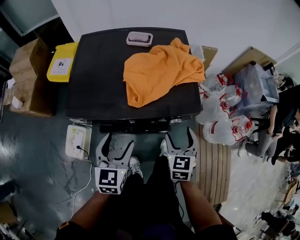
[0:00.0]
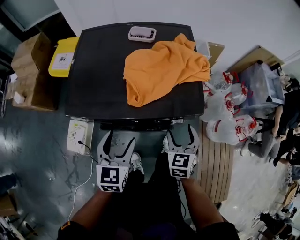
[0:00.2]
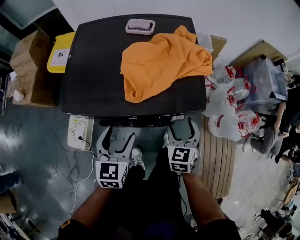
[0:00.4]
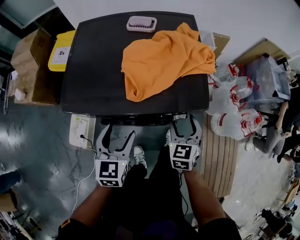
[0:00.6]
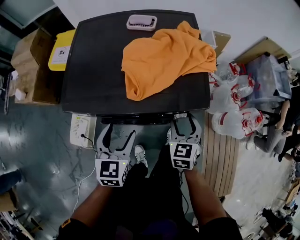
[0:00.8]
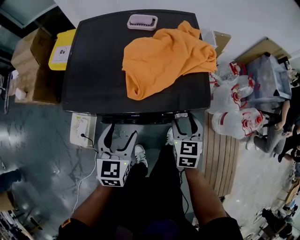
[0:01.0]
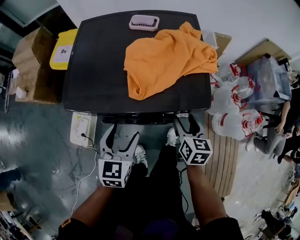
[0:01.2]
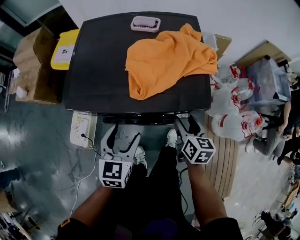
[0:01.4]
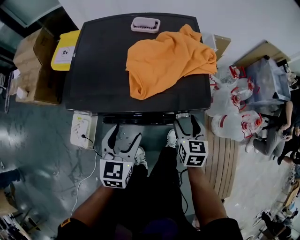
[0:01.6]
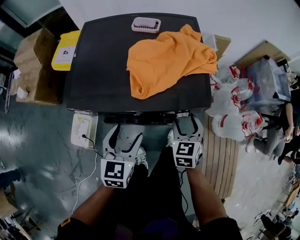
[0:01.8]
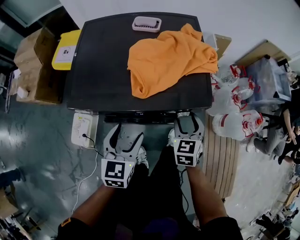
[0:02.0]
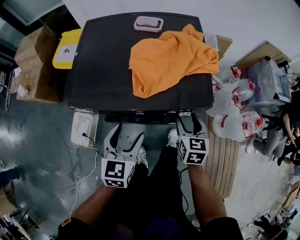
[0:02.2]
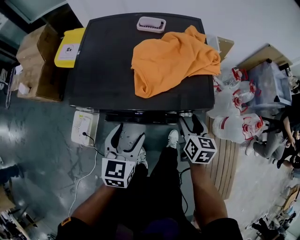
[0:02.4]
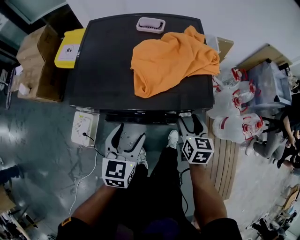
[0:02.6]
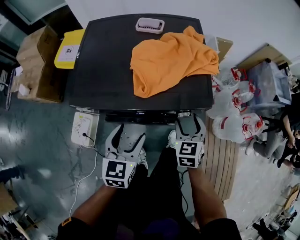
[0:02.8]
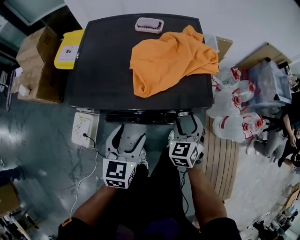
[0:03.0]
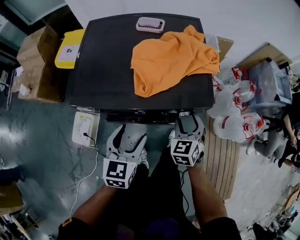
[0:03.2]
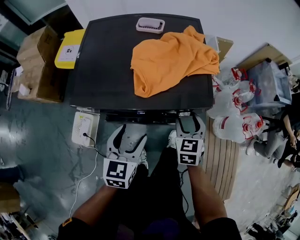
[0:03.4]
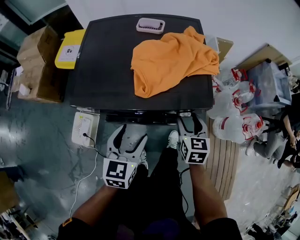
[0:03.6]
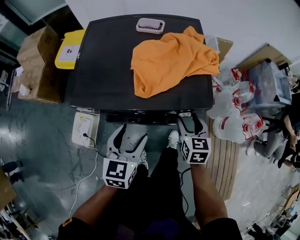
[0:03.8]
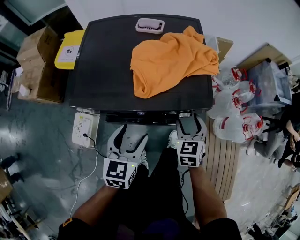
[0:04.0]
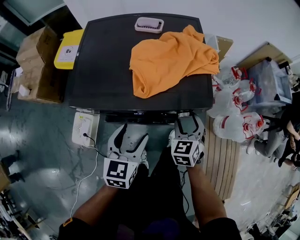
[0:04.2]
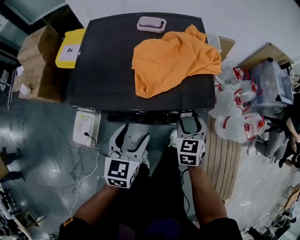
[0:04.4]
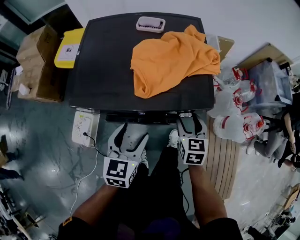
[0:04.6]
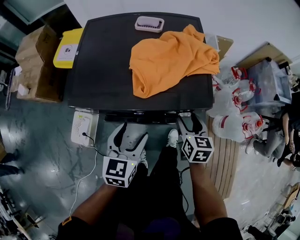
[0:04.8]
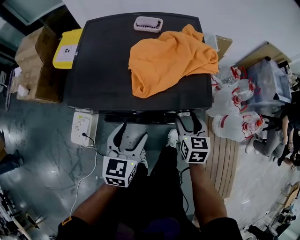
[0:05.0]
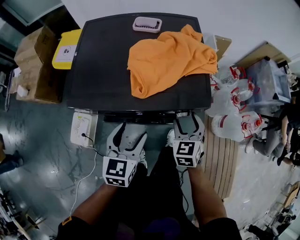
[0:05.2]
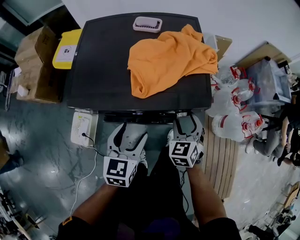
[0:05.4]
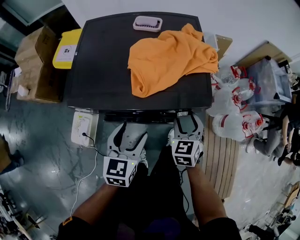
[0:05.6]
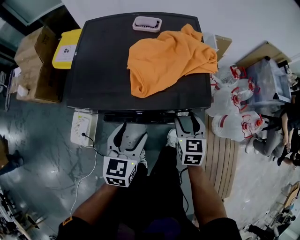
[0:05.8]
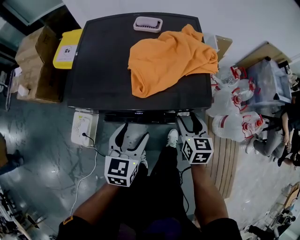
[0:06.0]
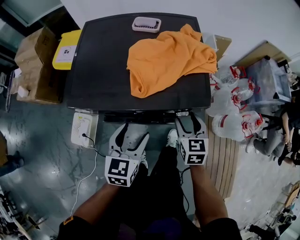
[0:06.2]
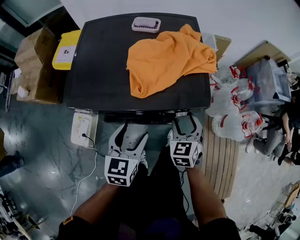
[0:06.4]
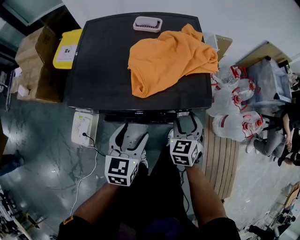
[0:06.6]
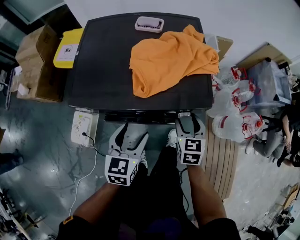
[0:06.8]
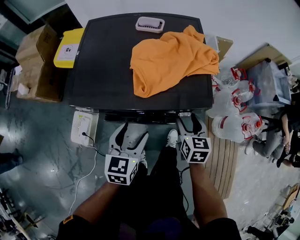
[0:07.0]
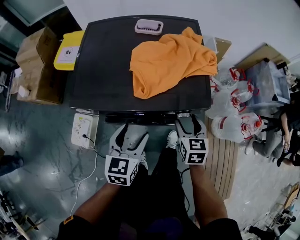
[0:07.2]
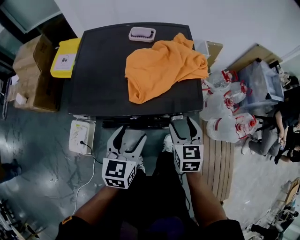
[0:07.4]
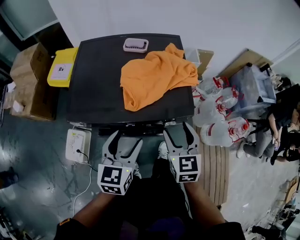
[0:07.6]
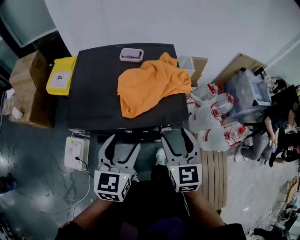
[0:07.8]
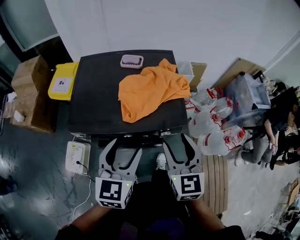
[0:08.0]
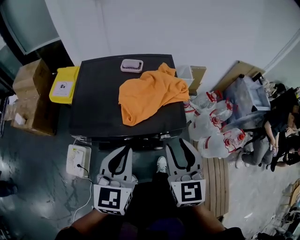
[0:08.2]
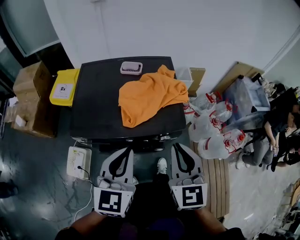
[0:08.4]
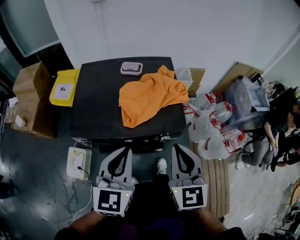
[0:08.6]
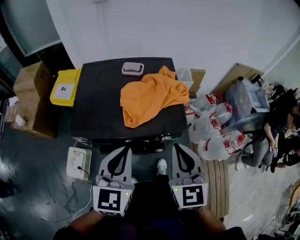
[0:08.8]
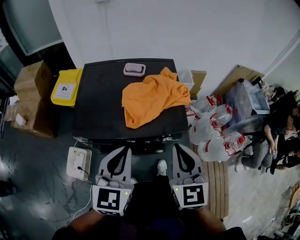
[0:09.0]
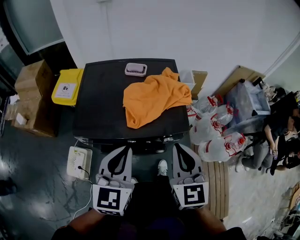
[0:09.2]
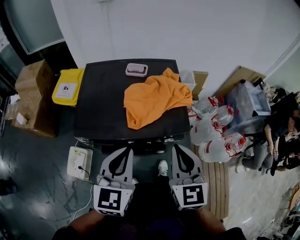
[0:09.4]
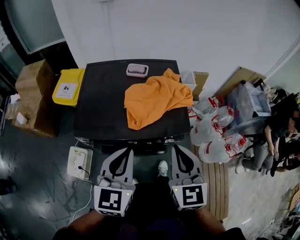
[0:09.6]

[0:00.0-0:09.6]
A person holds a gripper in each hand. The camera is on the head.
0:00.0 to 0:01.6: The right gripper ends up about 5 cm from where it was.
0:01.6 to 0:03.2: The right gripper swivels roughly 30 degrees.
0:03.2 to 0:04.8: The right gripper changes its angle by about 40 degrees.
0:04.8 to 0:06.4: The right gripper rotates roughly 30 degrees.
0:06.4 to 0:08.0: The grippers both shift upward by about 20 cm. The right gripper rotates roughly 20 degrees.
0:08.0 to 0:09.6: The right gripper closes up. Meanwhile the left gripper closes.

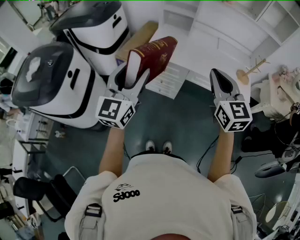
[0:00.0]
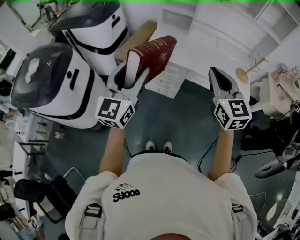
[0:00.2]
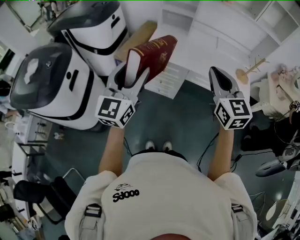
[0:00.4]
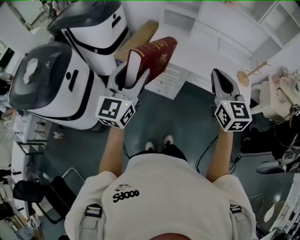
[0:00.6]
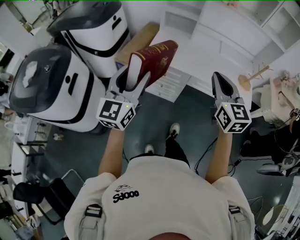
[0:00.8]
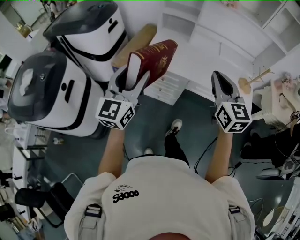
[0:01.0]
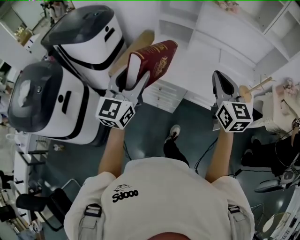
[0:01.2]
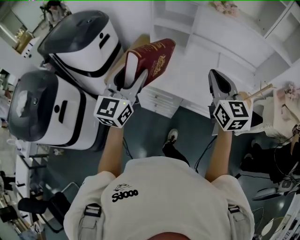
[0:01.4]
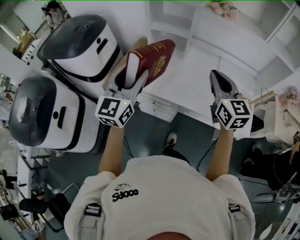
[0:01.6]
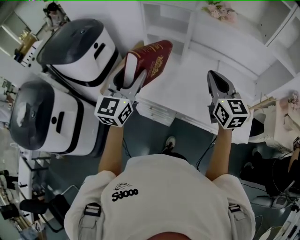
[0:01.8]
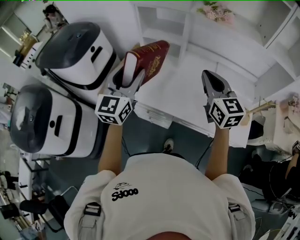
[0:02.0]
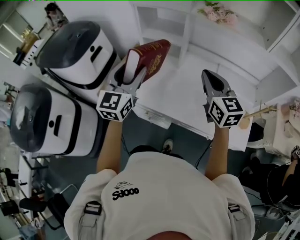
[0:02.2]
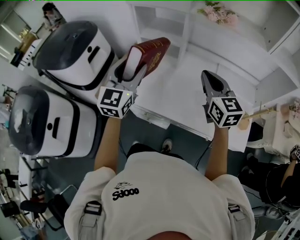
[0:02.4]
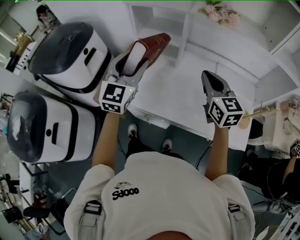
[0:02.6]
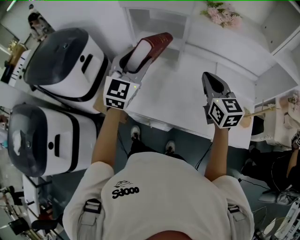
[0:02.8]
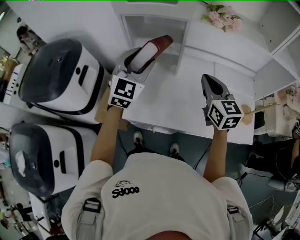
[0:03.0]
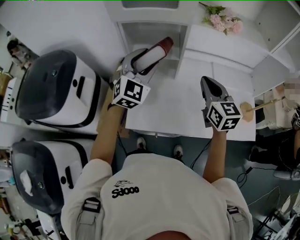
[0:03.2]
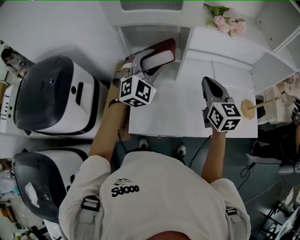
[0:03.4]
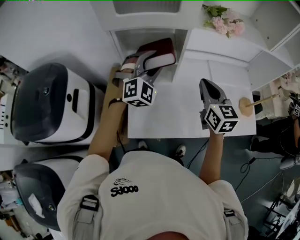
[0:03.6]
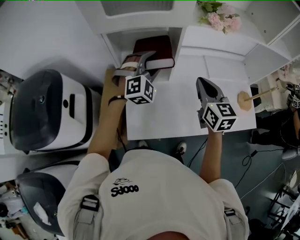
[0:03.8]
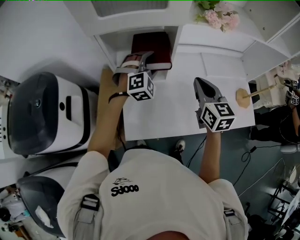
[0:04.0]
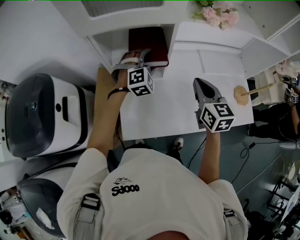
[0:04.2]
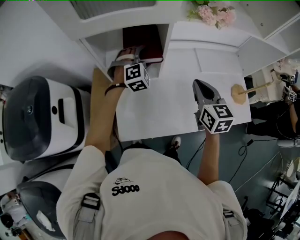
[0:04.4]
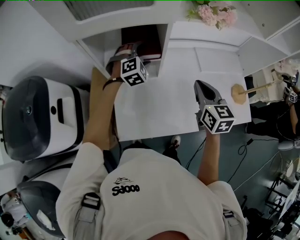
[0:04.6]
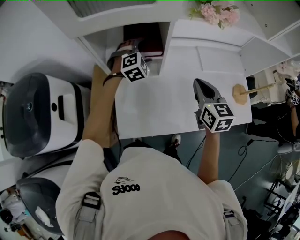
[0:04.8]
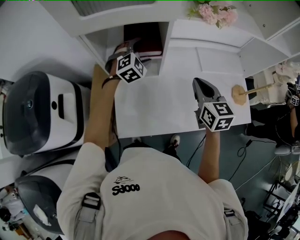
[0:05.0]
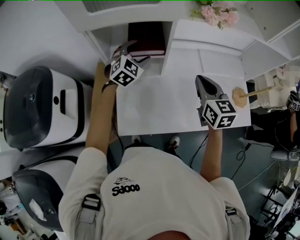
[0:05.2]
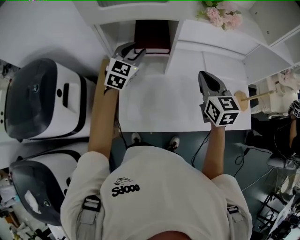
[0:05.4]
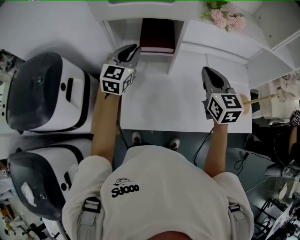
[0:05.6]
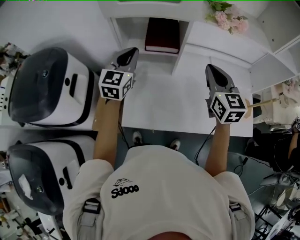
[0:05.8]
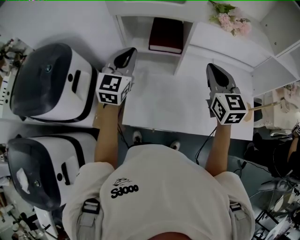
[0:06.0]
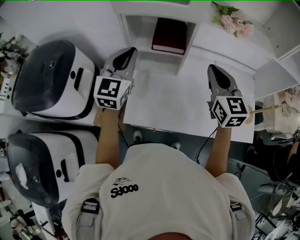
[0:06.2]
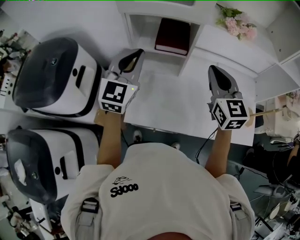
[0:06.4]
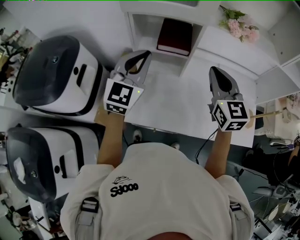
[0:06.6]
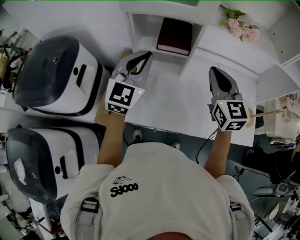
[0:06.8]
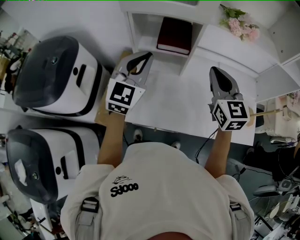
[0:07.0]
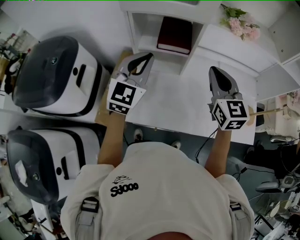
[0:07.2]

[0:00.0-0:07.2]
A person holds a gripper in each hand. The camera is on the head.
0:00.0 to 0:01.4: The two grippers go approximately 25 cm forward.
0:01.4 to 0:02.8: The two grippers go roughly 25 cm forward. The left gripper changes its angle by about 20 degrees.
0:02.8 to 0:04.4: The right gripper heads forward and downward, covering approximately 10 cm, and turns by roughly 30 degrees, while the left gripper is displaced forward and downward by roughly 30 cm, and angles its fingers downward, by some 30 degrees.
0:04.4 to 0:05.8: The left gripper goes approximately 20 cm upward, backward and to the left, rotates around the line of its fingers by approximately 60 degrees, counterclockwise from behind, and closes its fingers. Meanwhile the right gripper heads upward, covering about 10 cm.
0:05.8 to 0:07.2: The left gripper heads backward, covering about 5 cm.

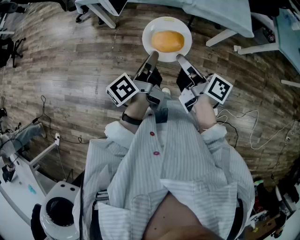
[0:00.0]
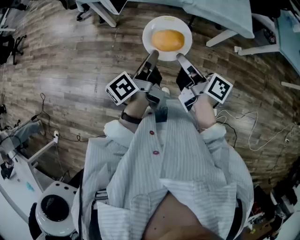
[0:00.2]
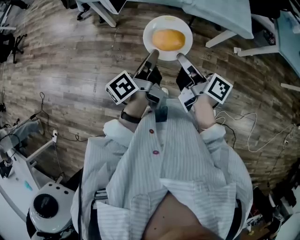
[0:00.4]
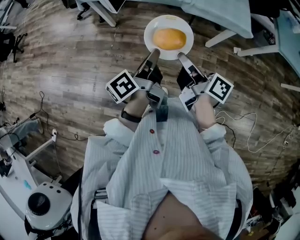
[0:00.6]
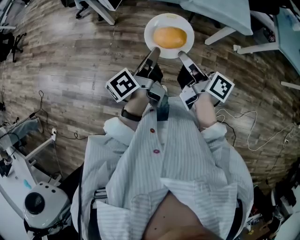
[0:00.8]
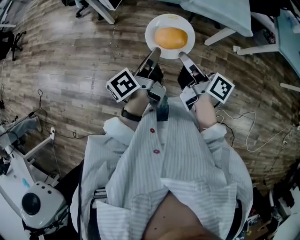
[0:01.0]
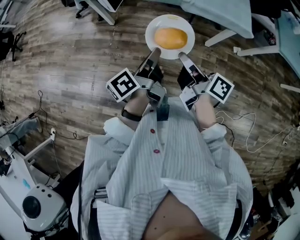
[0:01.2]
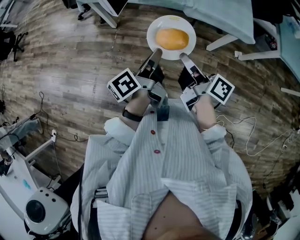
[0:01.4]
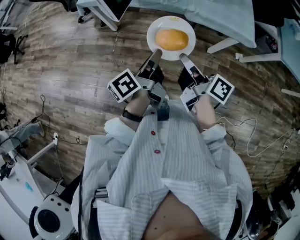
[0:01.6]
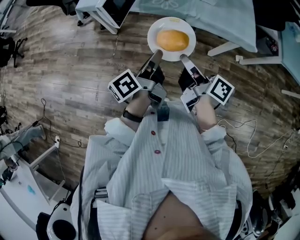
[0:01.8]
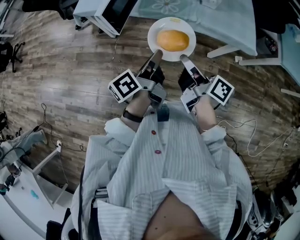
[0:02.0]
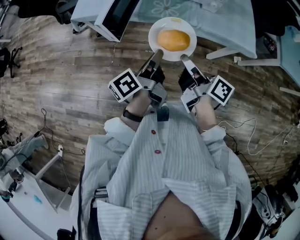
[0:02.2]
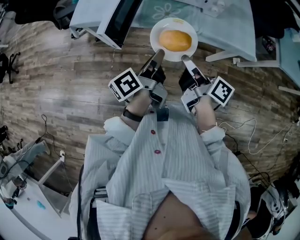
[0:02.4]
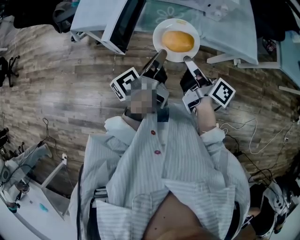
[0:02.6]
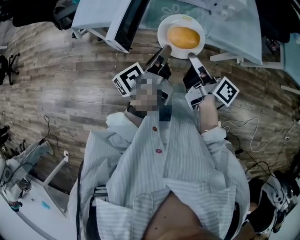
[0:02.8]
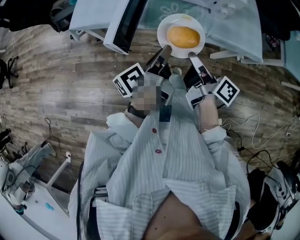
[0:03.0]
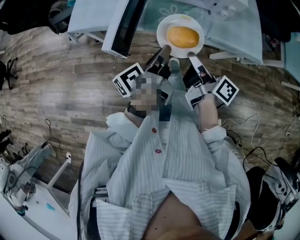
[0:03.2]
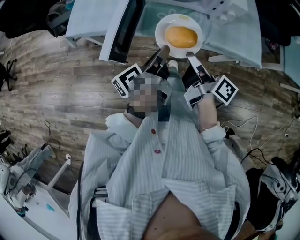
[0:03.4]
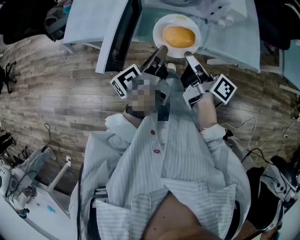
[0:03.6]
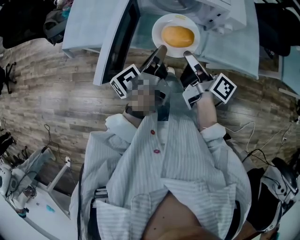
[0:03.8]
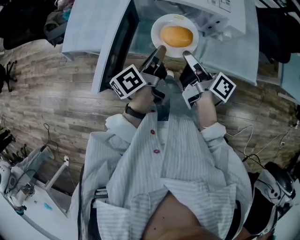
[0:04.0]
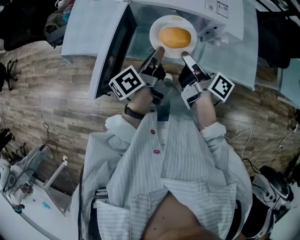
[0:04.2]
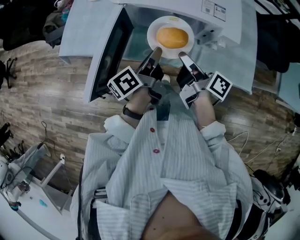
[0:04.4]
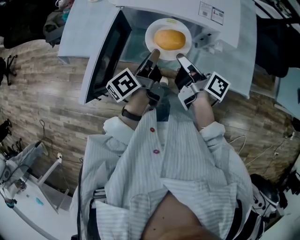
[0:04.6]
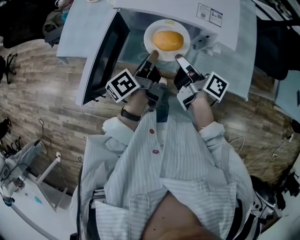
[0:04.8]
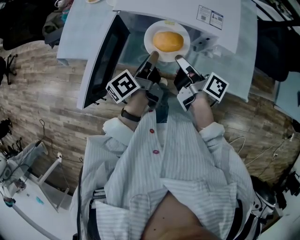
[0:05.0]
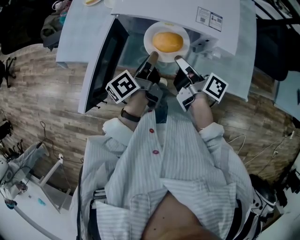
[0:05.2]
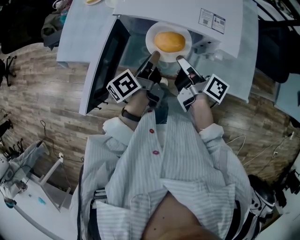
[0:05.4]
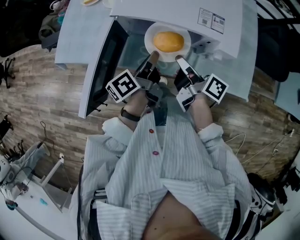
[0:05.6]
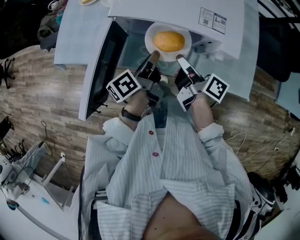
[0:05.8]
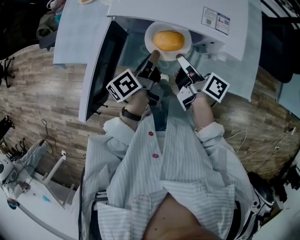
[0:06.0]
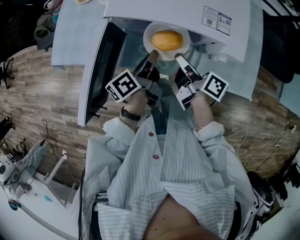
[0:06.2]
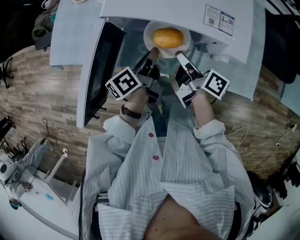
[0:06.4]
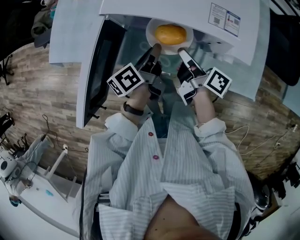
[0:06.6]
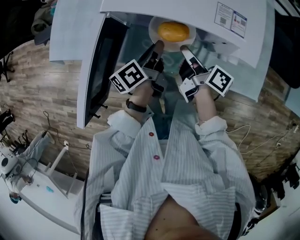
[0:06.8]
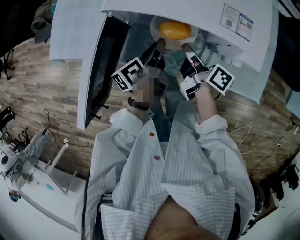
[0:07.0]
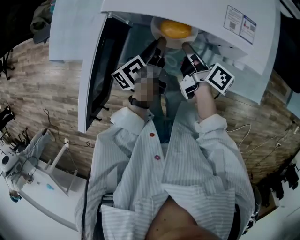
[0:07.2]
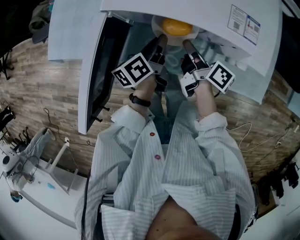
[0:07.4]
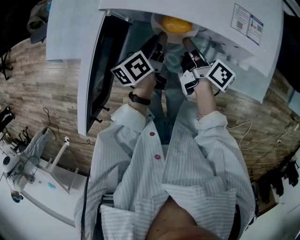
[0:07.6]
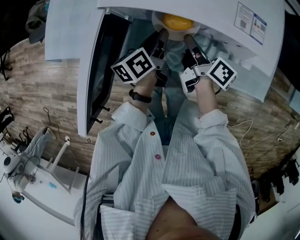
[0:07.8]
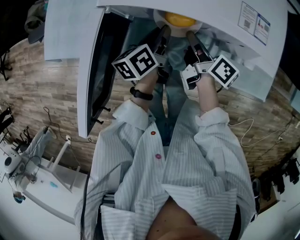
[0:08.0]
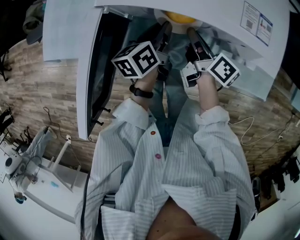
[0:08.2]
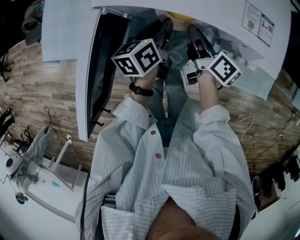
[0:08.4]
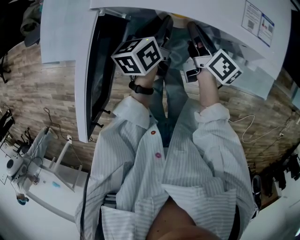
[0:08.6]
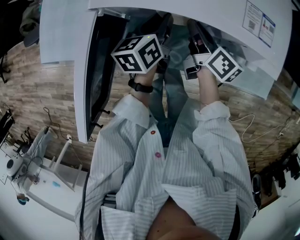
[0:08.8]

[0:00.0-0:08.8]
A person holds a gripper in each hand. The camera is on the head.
0:00.0 to 0:01.4: The grippers move only a little.
0:01.4 to 0:03.0: The grippers both shift forward by about 25 cm.
0:03.0 to 0:04.4: The two grippers go some 20 cm forward.
0:04.4 to 0:05.8: Both grippers travel together forward, some 5 cm.
0:05.8 to 0:07.4: Both grippers move downward and forward, approximately 10 cm.
0:07.4 to 0:08.8: Both grippers move forward, some 5 cm. The left gripper rotates approximately 20 degrees.
